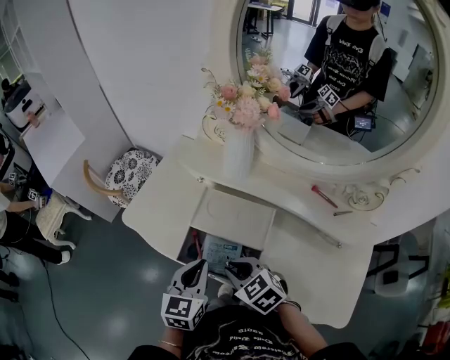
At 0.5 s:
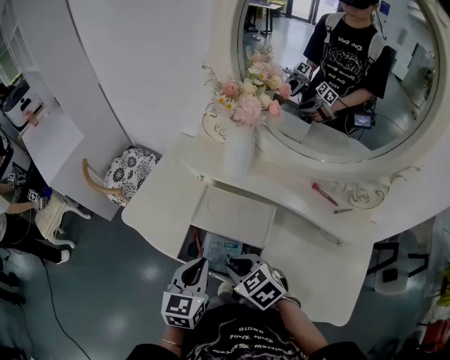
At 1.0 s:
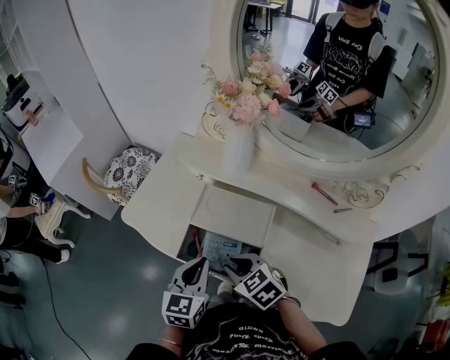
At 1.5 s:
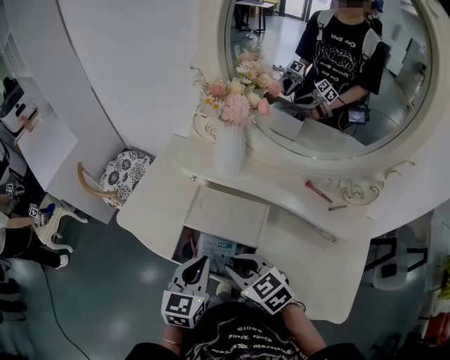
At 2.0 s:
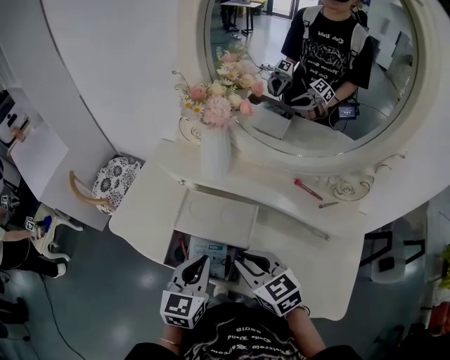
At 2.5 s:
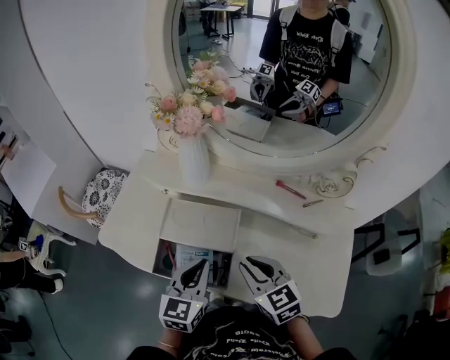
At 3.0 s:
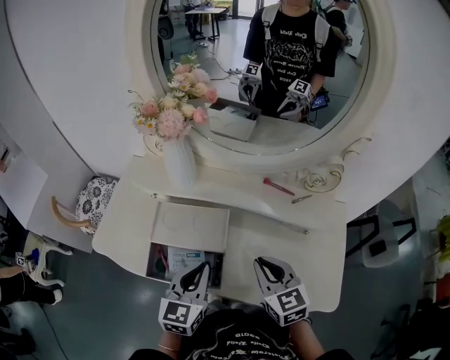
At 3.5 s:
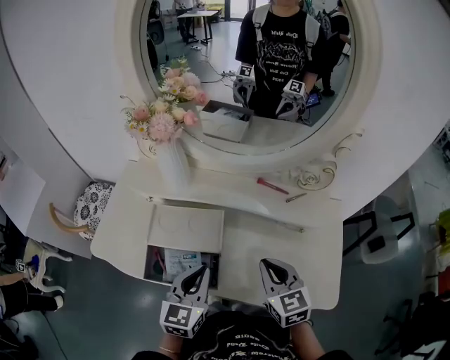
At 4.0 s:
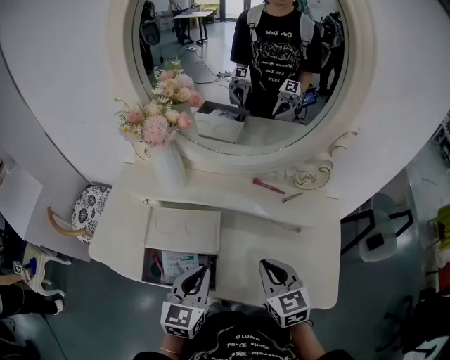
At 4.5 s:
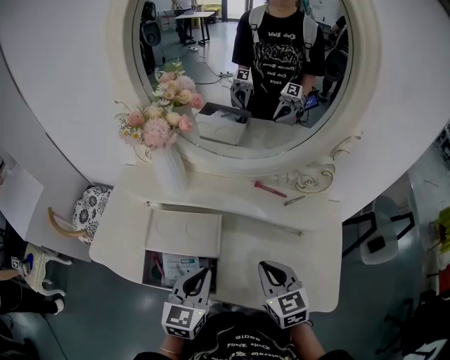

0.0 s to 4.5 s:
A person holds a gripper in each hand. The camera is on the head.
0.0 to 2.0 s: The left gripper ends up about 5 cm from where it was, while the right gripper is displaced to the right and upward by some 10 cm, and rotates some 20 degrees.
2.0 to 4.5 s: The right gripper goes roughly 15 cm to the right, and changes its angle by about 30 degrees, while the left gripper goes approximately 10 cm to the right.

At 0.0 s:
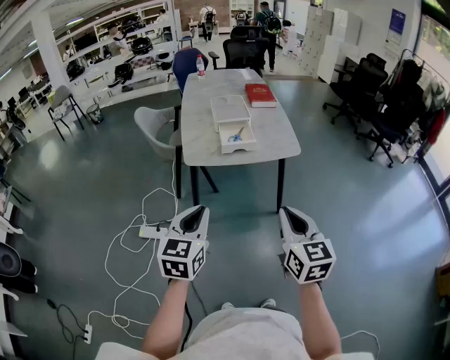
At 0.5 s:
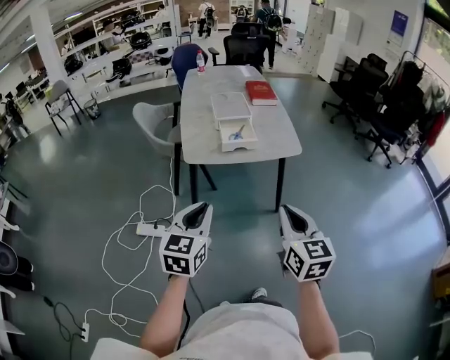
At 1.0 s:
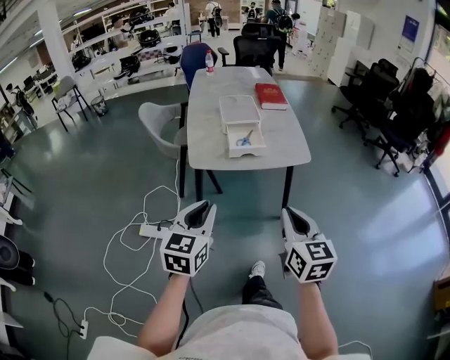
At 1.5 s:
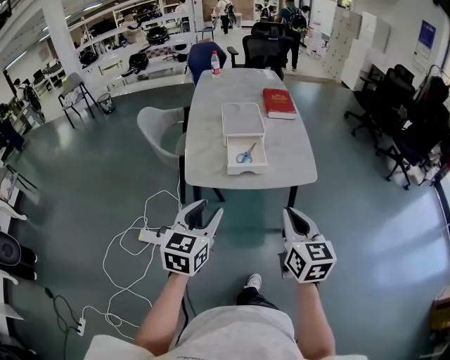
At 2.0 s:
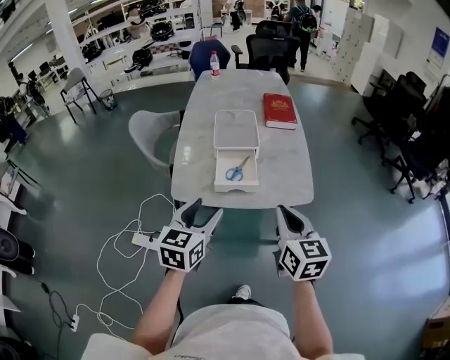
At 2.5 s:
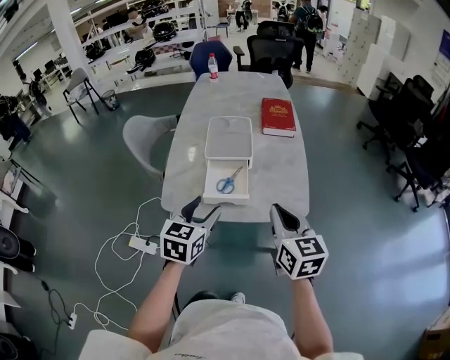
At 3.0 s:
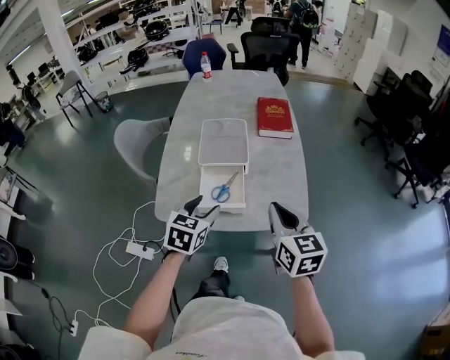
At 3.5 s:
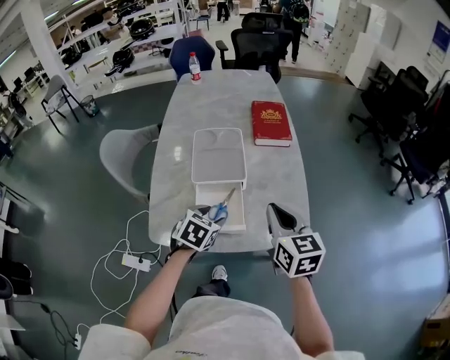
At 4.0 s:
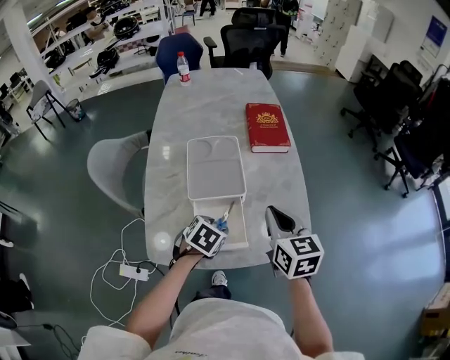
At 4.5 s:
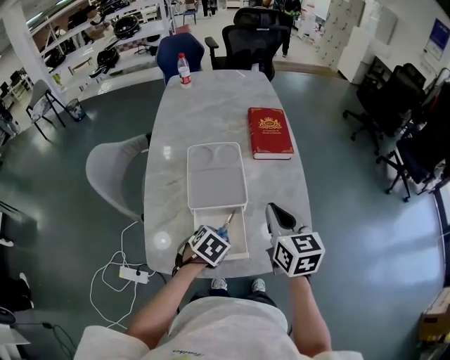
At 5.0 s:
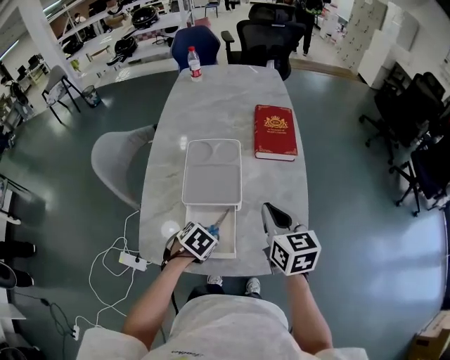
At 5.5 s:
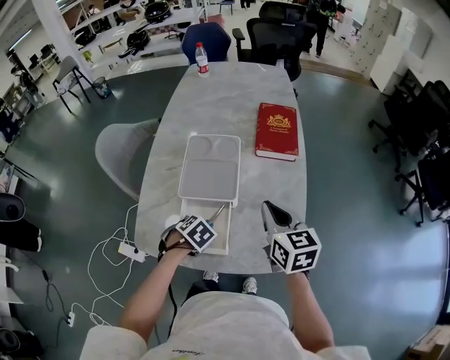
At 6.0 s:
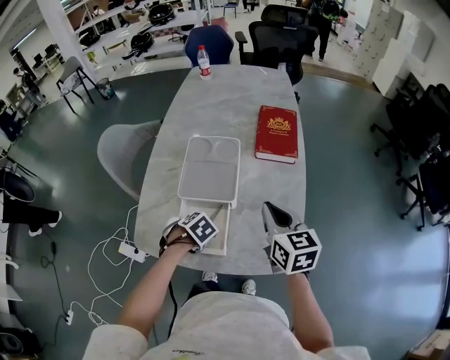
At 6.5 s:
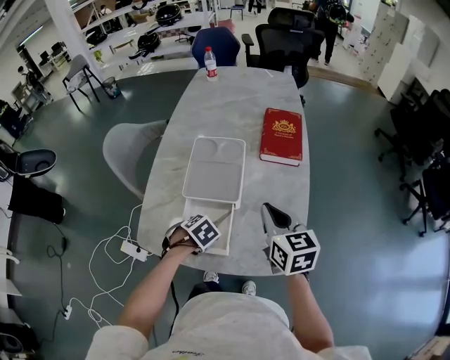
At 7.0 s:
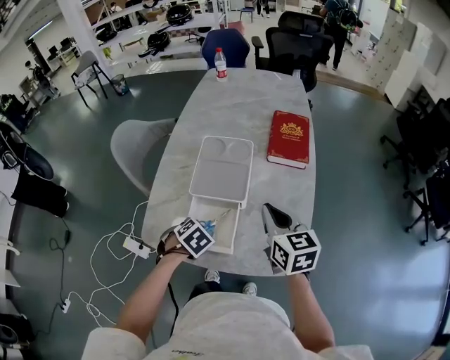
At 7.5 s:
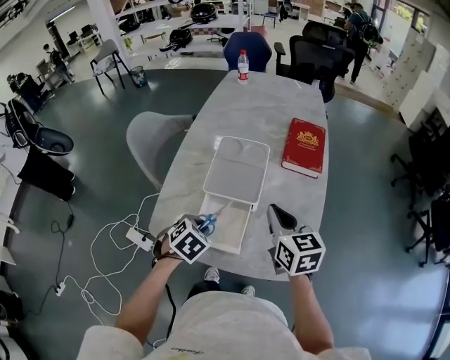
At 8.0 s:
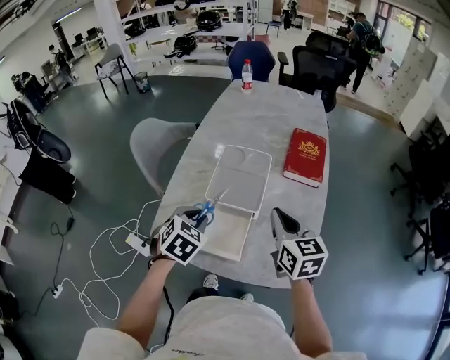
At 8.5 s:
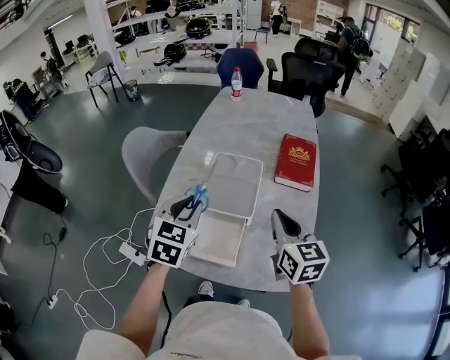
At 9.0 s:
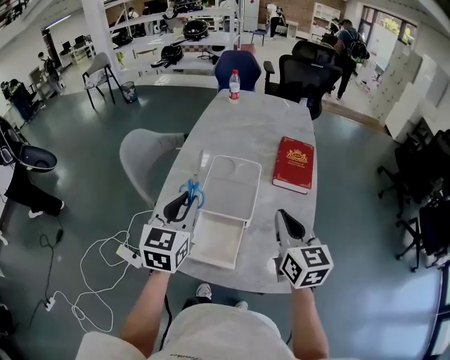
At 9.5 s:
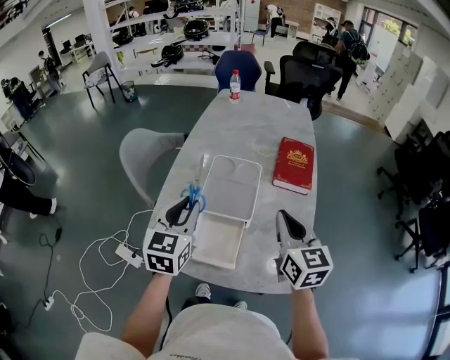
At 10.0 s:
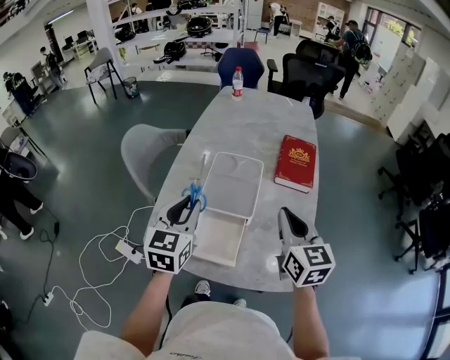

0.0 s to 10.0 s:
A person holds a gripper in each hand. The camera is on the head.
0.0 to 2.0 s: Both grippers travel together forward, roughly 30 cm. The left gripper opens its fingers.
2.0 to 4.0 s: The right gripper shifts about 25 cm forward, while the left gripper travels forward and downward by approximately 30 cm, and points its fingers roughly 40 degrees further downward.
4.0 to 6.0 s: The right gripper changes place by some 10 cm; the left gripper heads downward, covering roughly 5 cm, and rotates about 20 degrees.
6.0 to 8.0 s: The left gripper goes approximately 15 cm upward, and tilts its fingers about 30 degrees upward. The right gripper shifts by about 5 cm.
8.0 to 10.0 s: The right gripper is displaced upward by about 5 cm. Meanwhile the left gripper is displaced upward by some 10 cm, and points its fingers approximately 30 degrees further upward.

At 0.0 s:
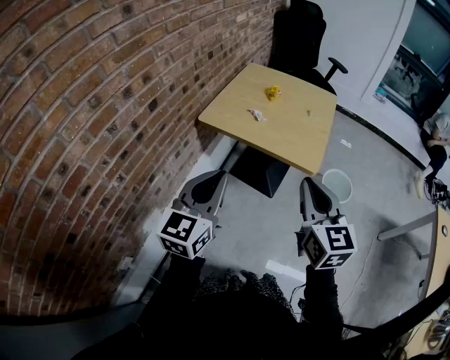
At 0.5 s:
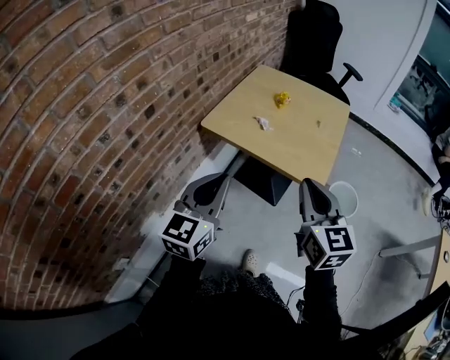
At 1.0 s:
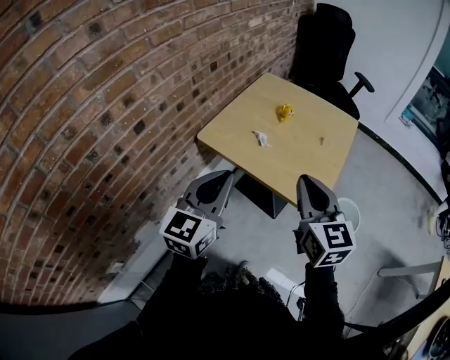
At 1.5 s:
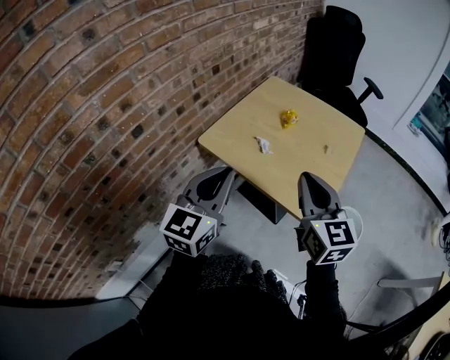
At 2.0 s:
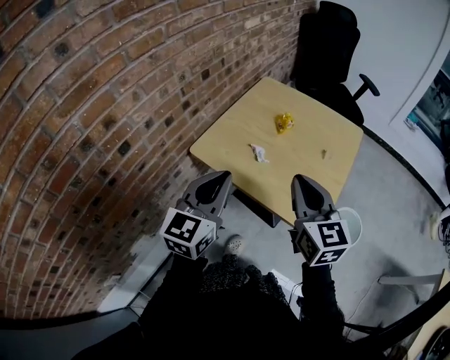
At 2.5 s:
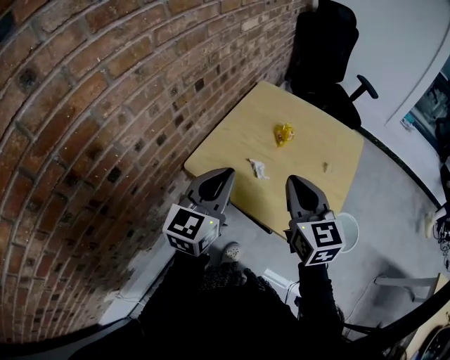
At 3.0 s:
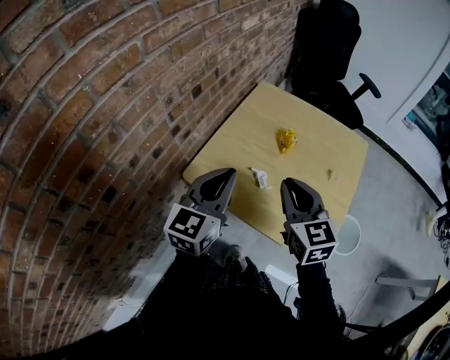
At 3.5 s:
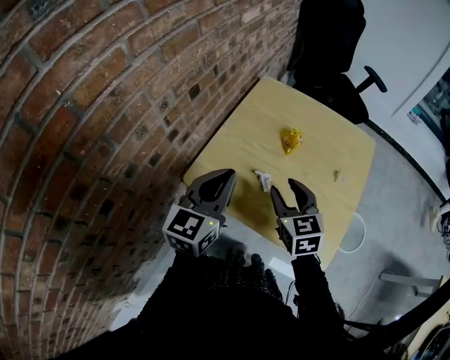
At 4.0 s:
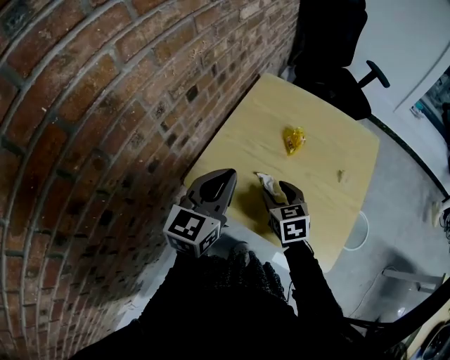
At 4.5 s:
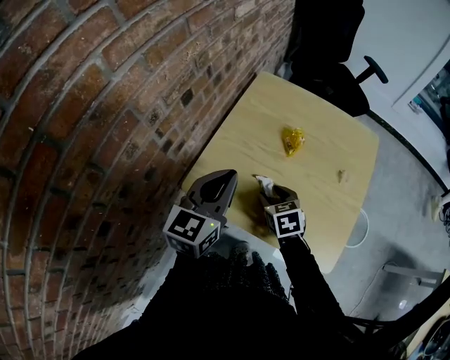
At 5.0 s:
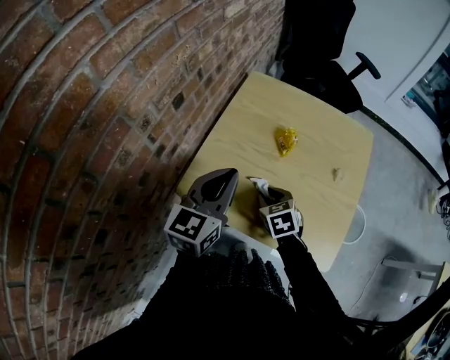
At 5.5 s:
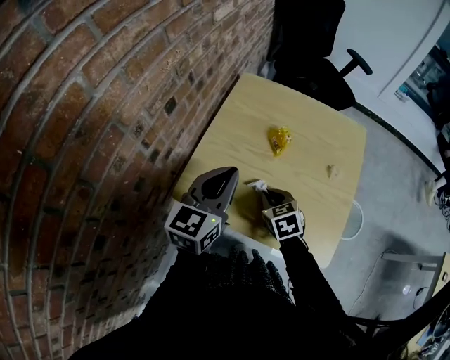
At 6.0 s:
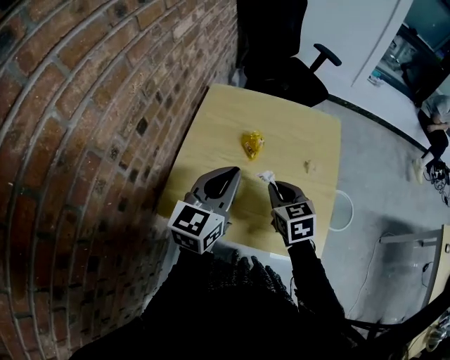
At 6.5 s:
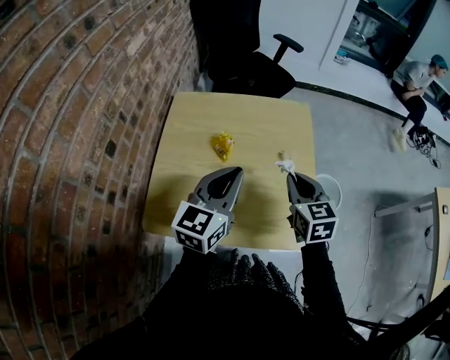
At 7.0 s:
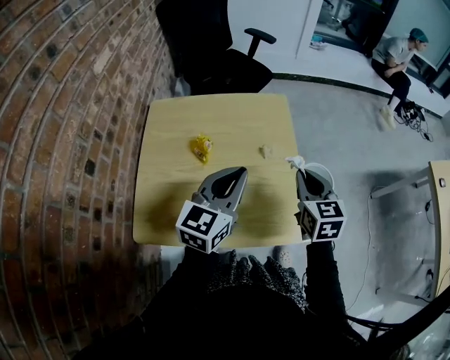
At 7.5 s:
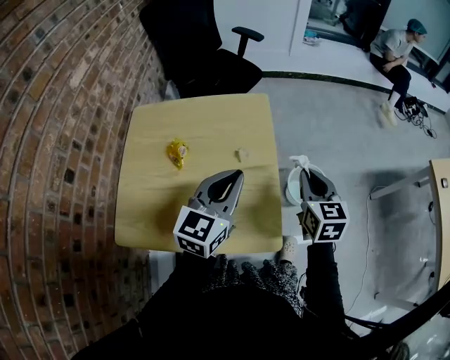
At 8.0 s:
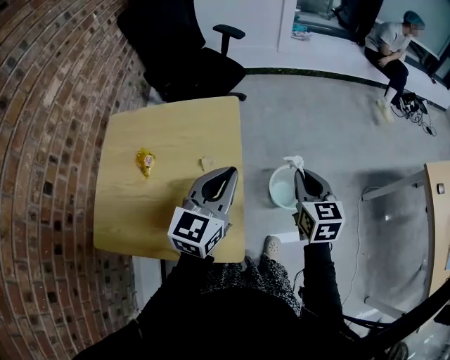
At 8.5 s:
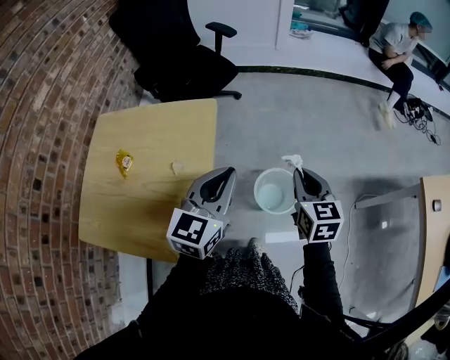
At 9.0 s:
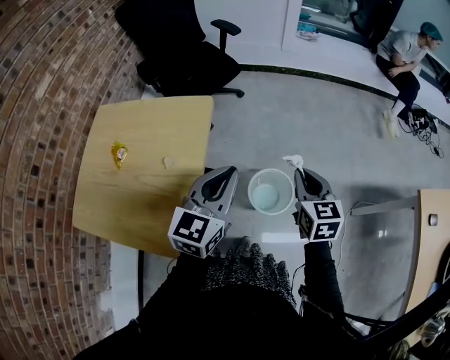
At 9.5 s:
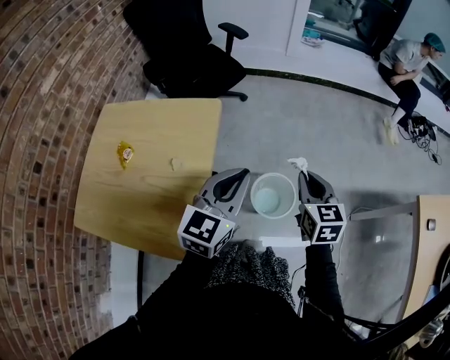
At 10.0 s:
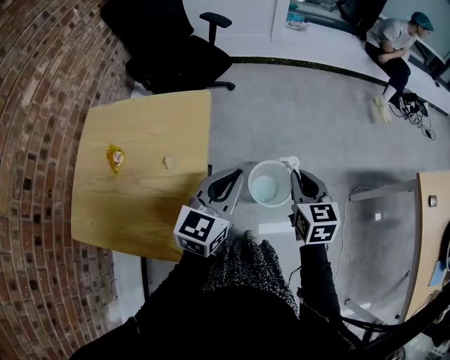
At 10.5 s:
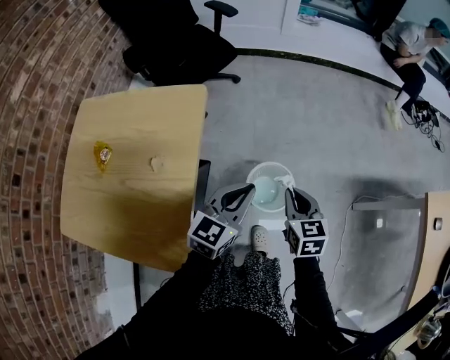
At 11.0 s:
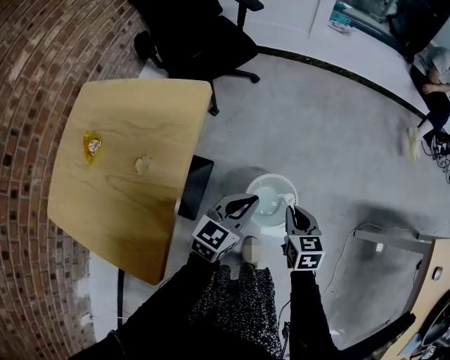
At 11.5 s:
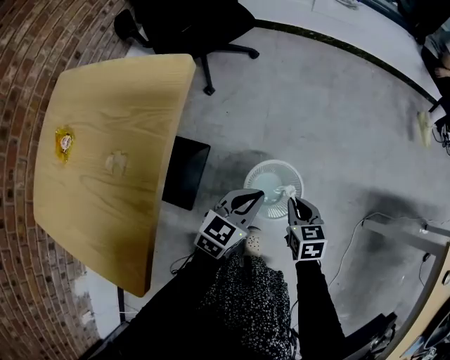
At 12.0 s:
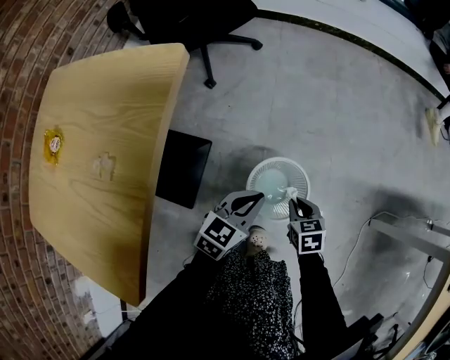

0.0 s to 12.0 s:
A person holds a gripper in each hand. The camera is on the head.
0.0 to 2.0 s: Both grippers move forward, some 25 cm.
2.0 to 4.0 s: The left gripper goes roughly 20 cm forward. Meanwhile the right gripper travels downward, forward and to the left by approximately 30 cm, tips its fingers downward by about 30 degrees, and opens its fingers.
4.0 to 6.0 s: Both grippers move to the right, some 10 cm. The right gripper closes.
6.0 to 8.0 s: The grippers both shift to the right by some 35 cm. The right gripper rotates about 30 degrees.
8.0 to 10.0 s: Both grippers move to the right, roughly 10 cm.
10.0 to 12.0 s: The grippers both shift downward by approximately 40 cm. The left gripper swivels roughly 20 degrees, while the right gripper changes its angle by approximately 30 degrees.
